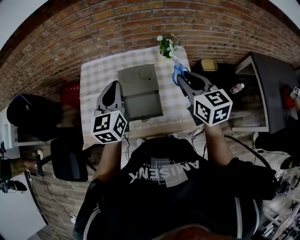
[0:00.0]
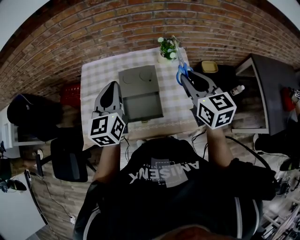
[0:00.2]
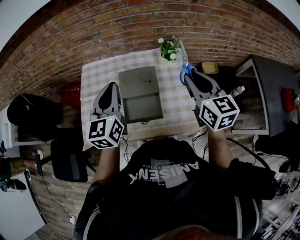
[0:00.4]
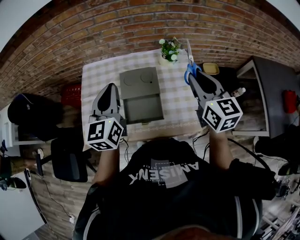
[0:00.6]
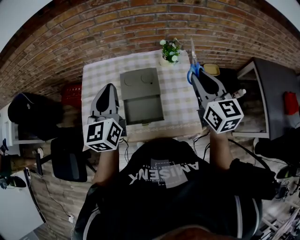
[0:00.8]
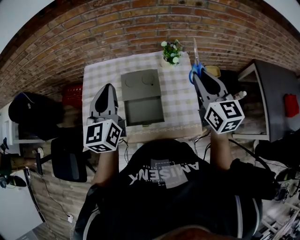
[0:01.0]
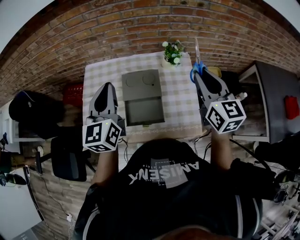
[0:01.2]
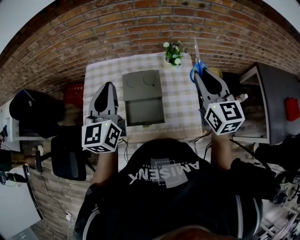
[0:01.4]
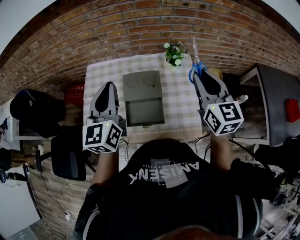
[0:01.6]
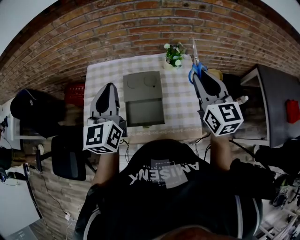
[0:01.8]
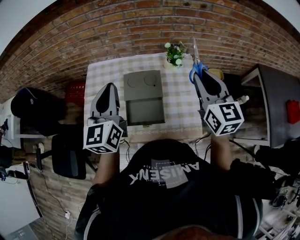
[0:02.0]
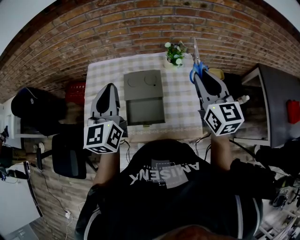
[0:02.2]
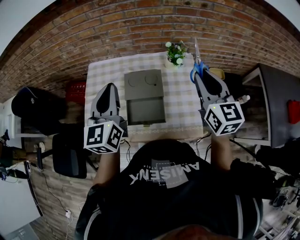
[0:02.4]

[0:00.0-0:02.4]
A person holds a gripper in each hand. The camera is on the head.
0:00.0 to 0:01.2: Both grippers travel together upward, some 5 cm.
0:01.2 to 0:02.4: Neither gripper changes place.

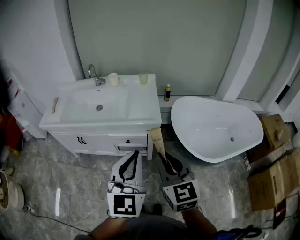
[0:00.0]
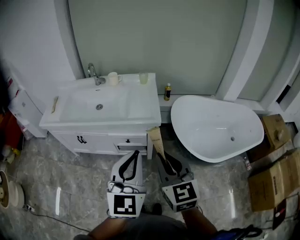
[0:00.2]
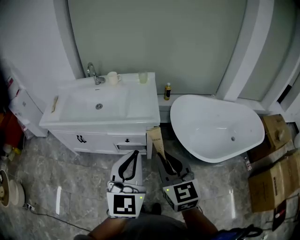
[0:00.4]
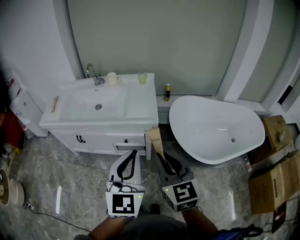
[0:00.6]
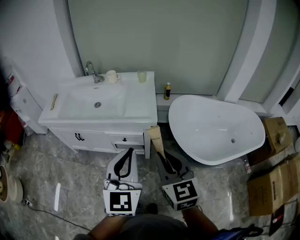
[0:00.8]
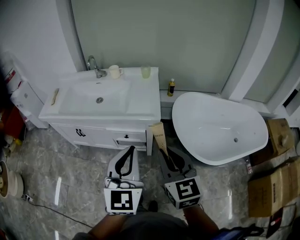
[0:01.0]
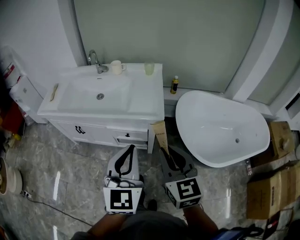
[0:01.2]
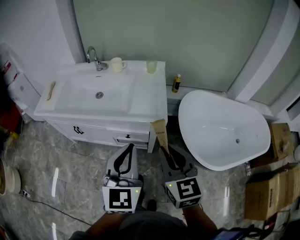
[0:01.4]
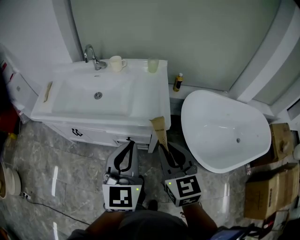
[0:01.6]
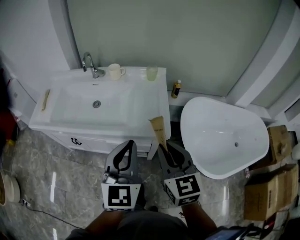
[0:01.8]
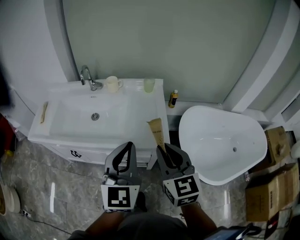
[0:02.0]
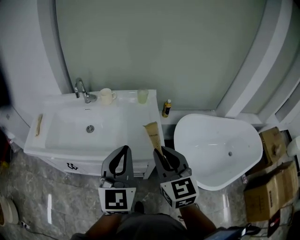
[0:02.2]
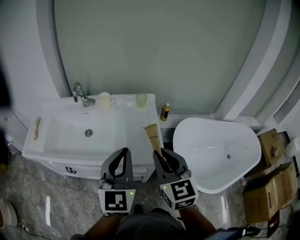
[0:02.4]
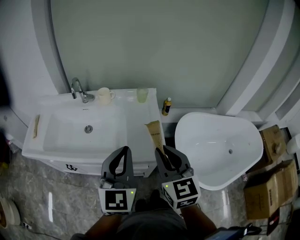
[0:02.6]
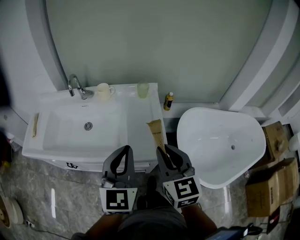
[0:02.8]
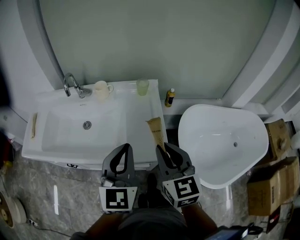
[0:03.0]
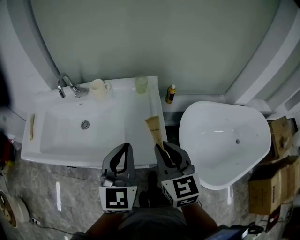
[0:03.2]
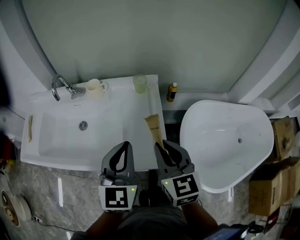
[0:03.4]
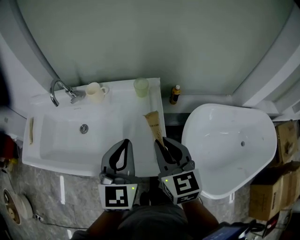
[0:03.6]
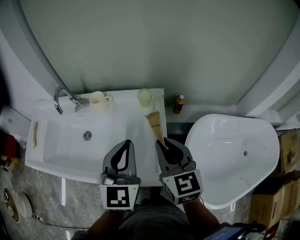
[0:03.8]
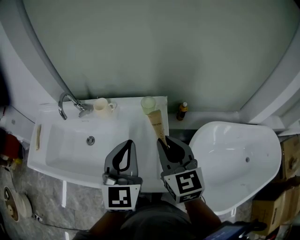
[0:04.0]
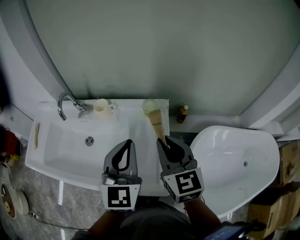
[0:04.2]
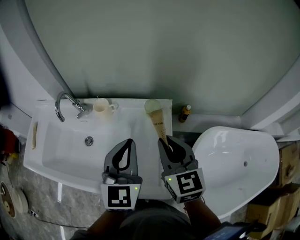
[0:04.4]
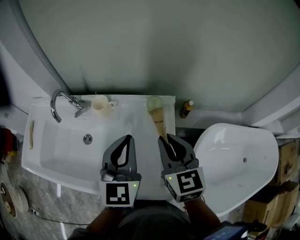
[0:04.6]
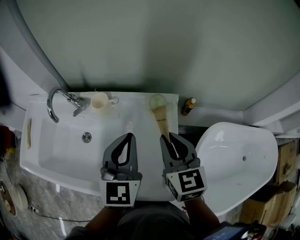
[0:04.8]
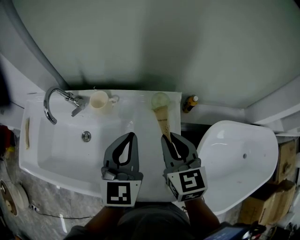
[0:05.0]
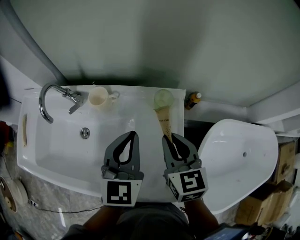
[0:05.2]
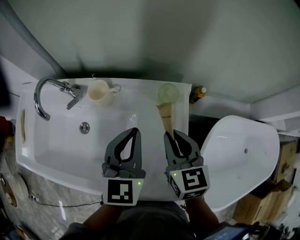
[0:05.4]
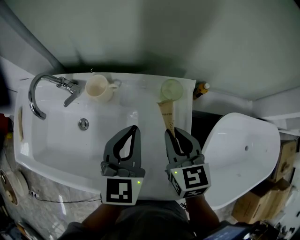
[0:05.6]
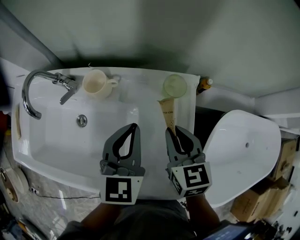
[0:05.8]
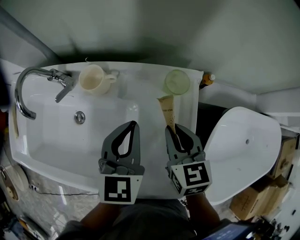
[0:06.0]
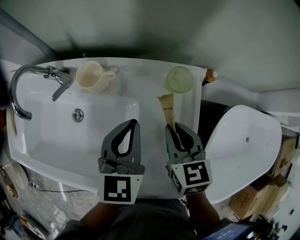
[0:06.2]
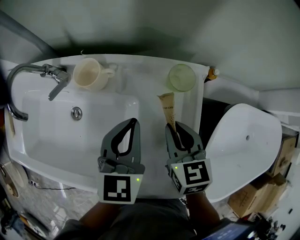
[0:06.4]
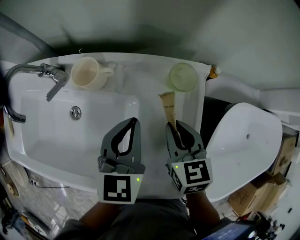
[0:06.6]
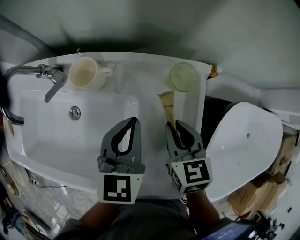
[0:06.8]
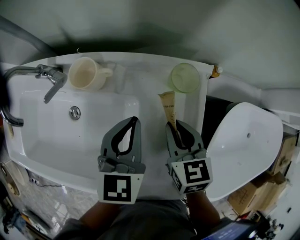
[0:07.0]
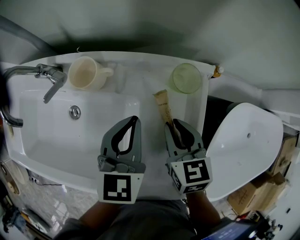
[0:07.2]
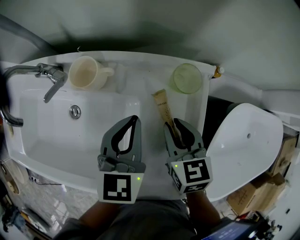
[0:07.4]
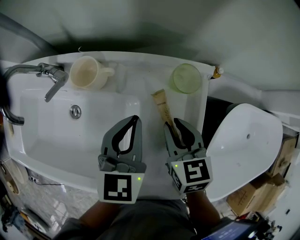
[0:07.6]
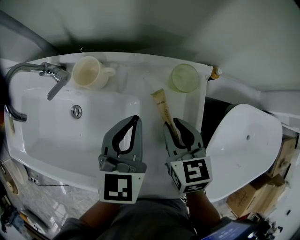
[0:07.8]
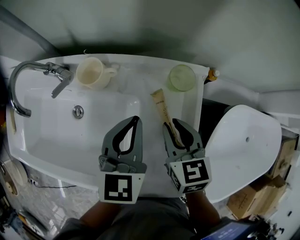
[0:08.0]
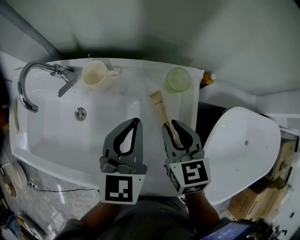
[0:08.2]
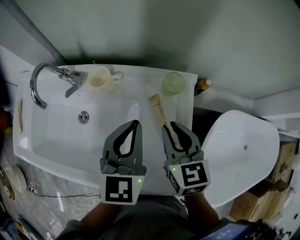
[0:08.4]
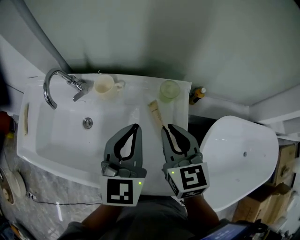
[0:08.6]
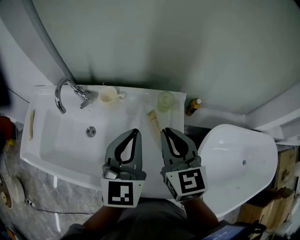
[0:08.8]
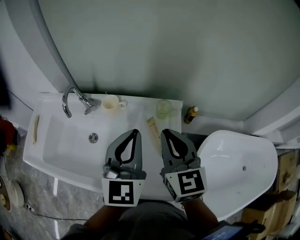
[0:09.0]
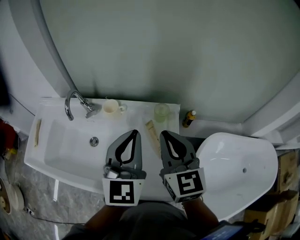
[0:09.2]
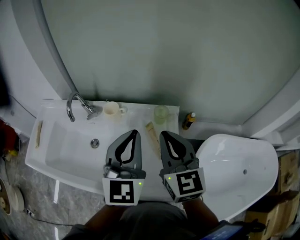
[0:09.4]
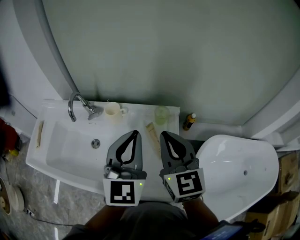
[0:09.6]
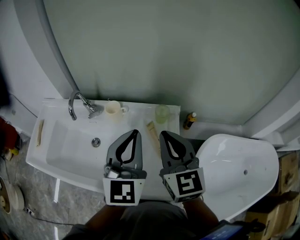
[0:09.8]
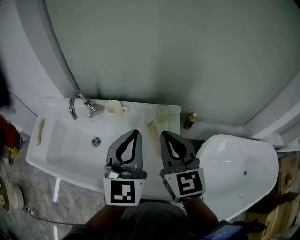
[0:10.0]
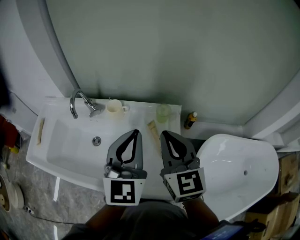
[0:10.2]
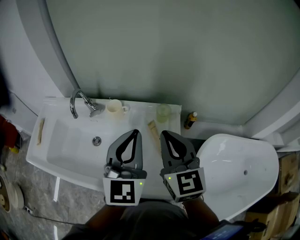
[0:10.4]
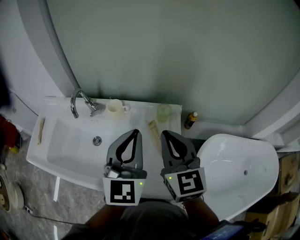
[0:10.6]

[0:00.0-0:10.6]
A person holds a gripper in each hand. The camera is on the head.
0:00.0 to 0:01.6: The grippers both shift forward by some 15 cm.
0:01.6 to 0:03.0: Both grippers move forward, approximately 15 cm.
0:03.0 to 0:04.6: The grippers both shift forward by about 25 cm.
0:04.6 to 0:06.0: The right gripper goes about 15 cm downward; the left gripper travels downward and forward by approximately 15 cm.
0:06.0 to 0:07.6: The grippers move only a little.
0:07.6 to 0:09.0: The right gripper goes roughly 25 cm upward, and changes its angle by approximately 30 degrees, while the left gripper heads upward and backward, covering about 20 cm, and turns by roughly 30 degrees.
0:09.0 to 0:10.6: The grippers make only small movements.

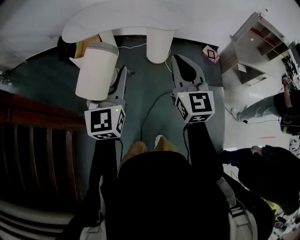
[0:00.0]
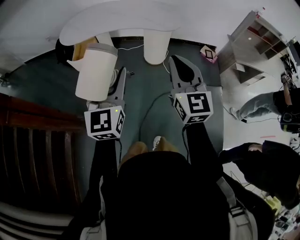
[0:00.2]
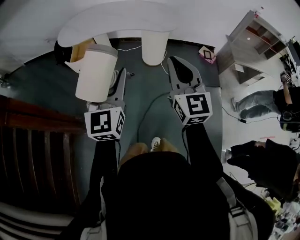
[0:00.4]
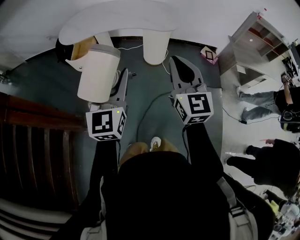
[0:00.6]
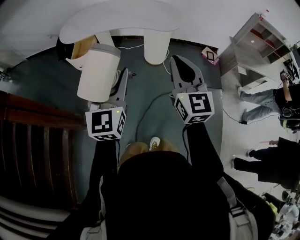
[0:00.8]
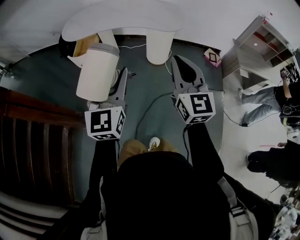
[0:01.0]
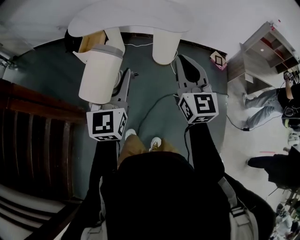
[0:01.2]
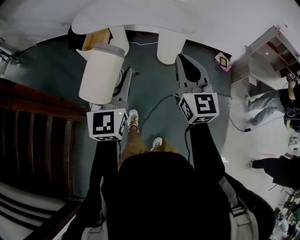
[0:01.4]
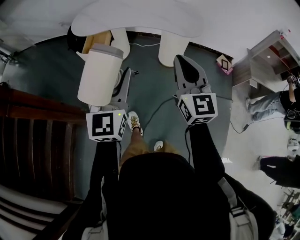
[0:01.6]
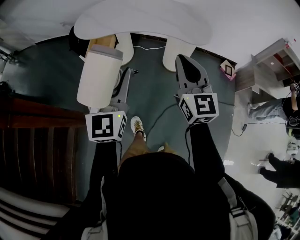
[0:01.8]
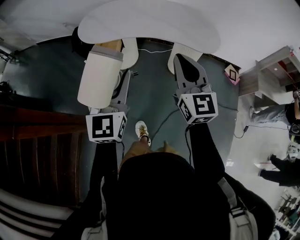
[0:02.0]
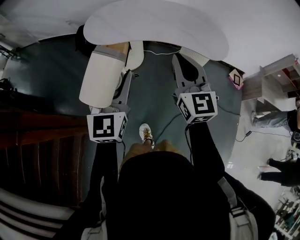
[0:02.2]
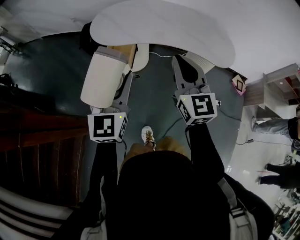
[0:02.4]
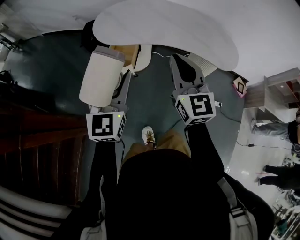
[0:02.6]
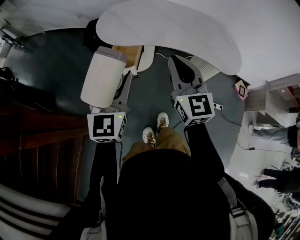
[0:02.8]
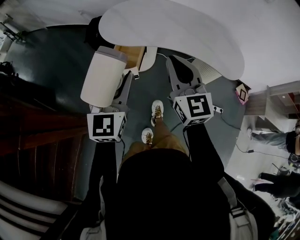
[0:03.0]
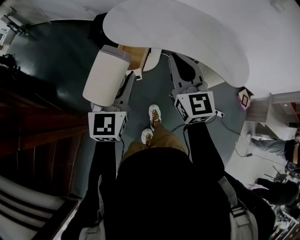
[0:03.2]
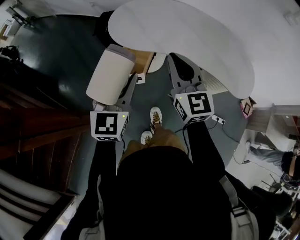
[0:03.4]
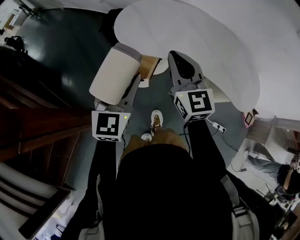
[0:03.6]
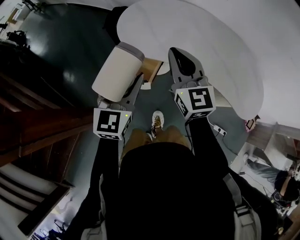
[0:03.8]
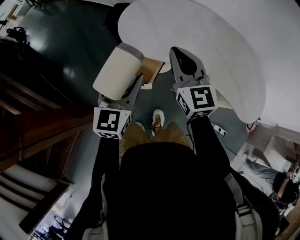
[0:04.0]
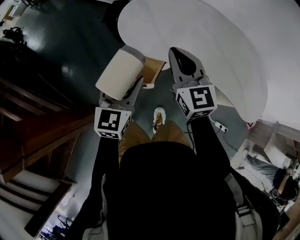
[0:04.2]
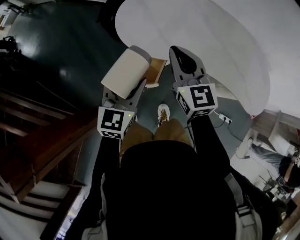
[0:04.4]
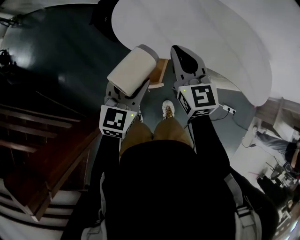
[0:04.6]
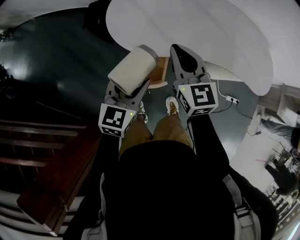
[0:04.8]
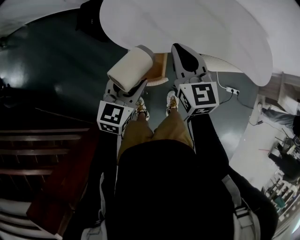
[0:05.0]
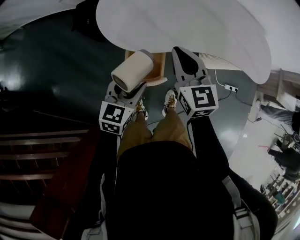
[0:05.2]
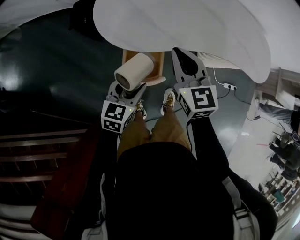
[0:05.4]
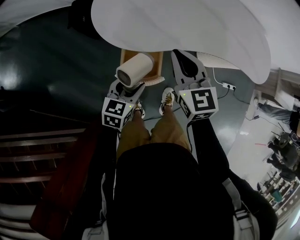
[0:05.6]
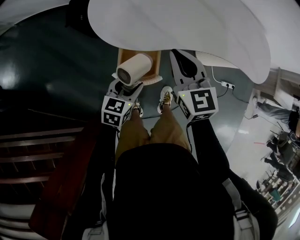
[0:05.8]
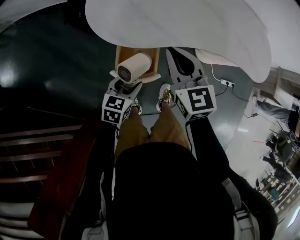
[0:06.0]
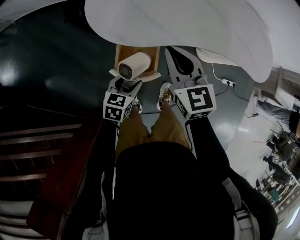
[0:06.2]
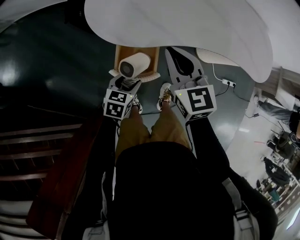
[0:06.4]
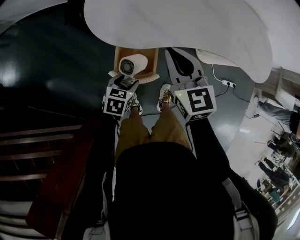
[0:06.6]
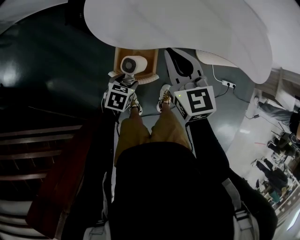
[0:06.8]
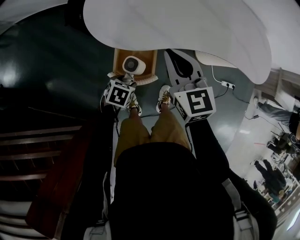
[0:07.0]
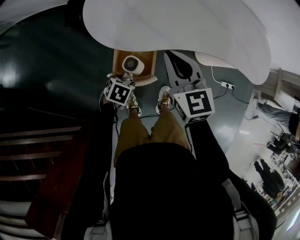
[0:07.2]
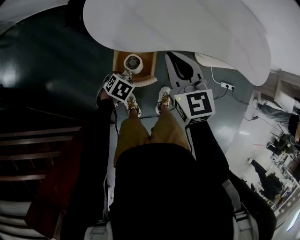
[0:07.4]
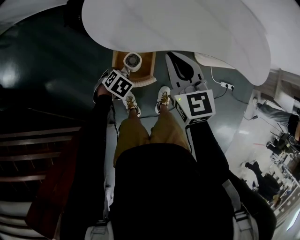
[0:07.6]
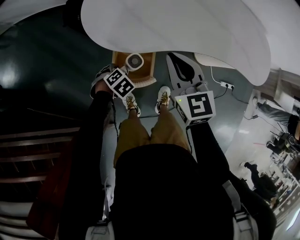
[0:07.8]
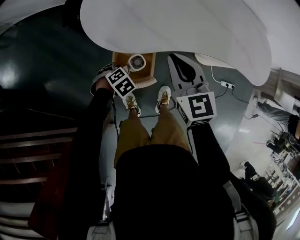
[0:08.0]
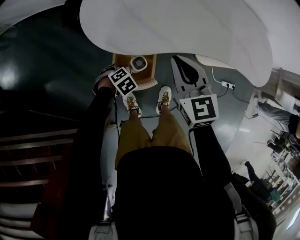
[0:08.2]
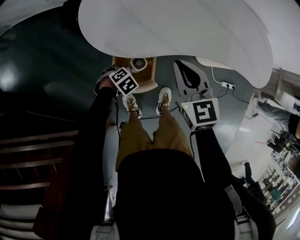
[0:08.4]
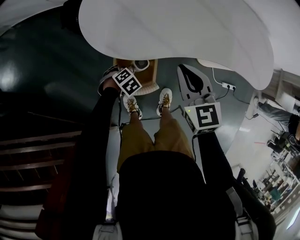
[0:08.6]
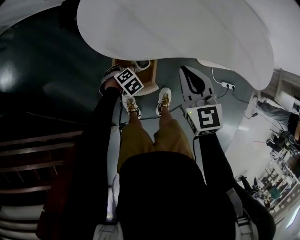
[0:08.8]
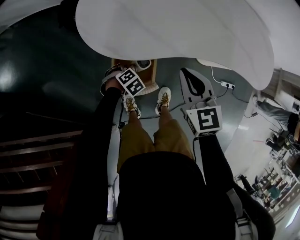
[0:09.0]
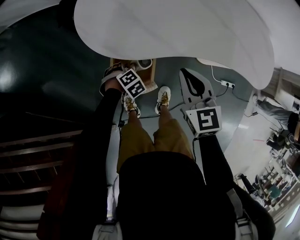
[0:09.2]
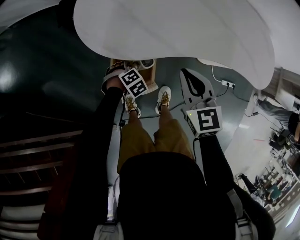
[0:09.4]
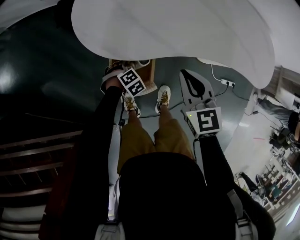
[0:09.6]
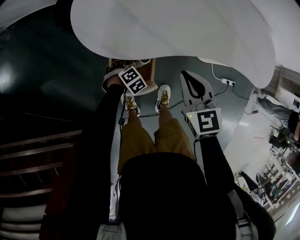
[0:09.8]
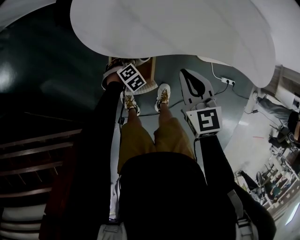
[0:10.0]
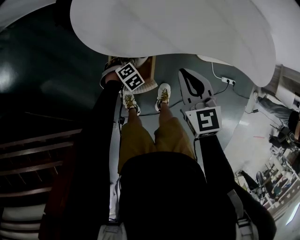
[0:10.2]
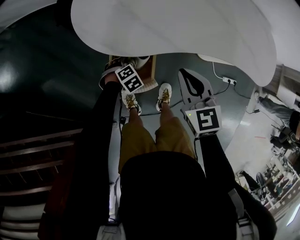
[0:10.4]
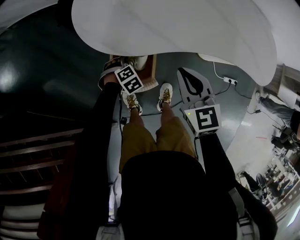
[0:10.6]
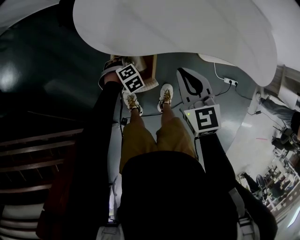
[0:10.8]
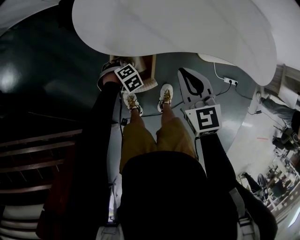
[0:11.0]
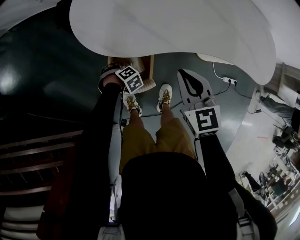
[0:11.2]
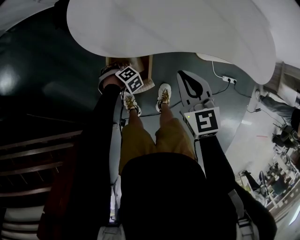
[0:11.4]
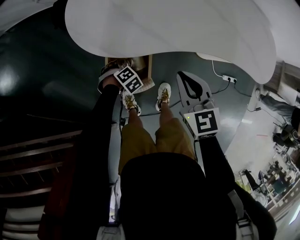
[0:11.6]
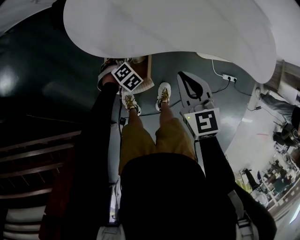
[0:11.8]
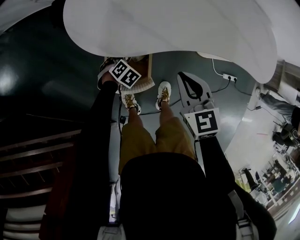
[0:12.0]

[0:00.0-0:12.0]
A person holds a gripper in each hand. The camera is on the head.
0:00.0 to 0:01.6: The left gripper heads forward, covering some 5 cm, while the right gripper moves forward, approximately 10 cm.
0:01.6 to 0:03.0: Both grippers travel together forward and to the left, approximately 30 cm.
0:03.0 to 0:04.4: The left gripper travels forward and downward by approximately 20 cm, while the right gripper moves forward, about 25 cm.
0:04.4 to 0:06.0: The left gripper heads downward, covering some 20 cm, and changes its angle by some 40 degrees, while the right gripper goes roughly 10 cm downward.
0:06.0 to 0:07.6: The left gripper goes approximately 10 cm downward, and tilts its fingers some 40 degrees downward.
0:07.6 to 0:09.0: The left gripper heads downward, covering roughly 10 cm. Meanwhile the right gripper shifts by roughly 5 cm.
0:09.0 to 0:12.0: There are only small adjustments of the grippers.
